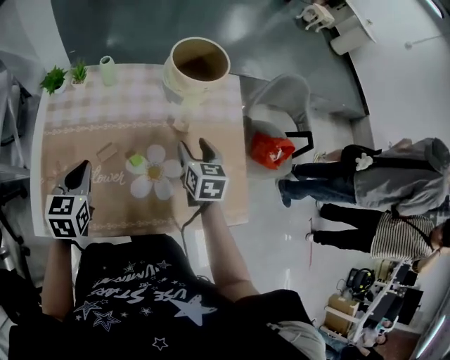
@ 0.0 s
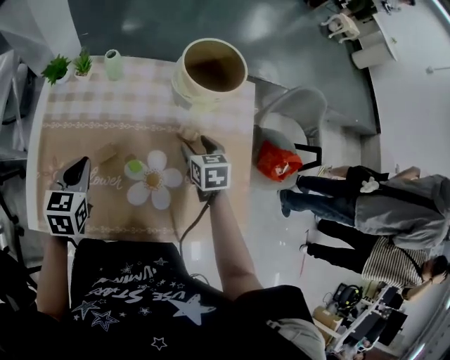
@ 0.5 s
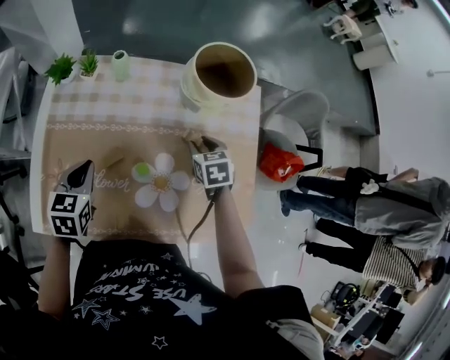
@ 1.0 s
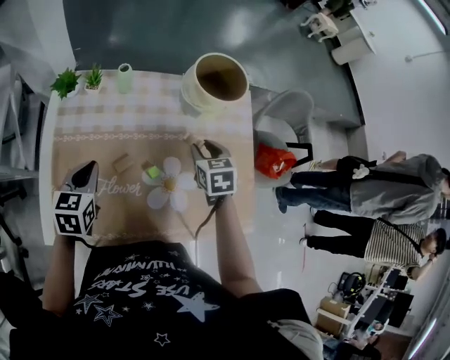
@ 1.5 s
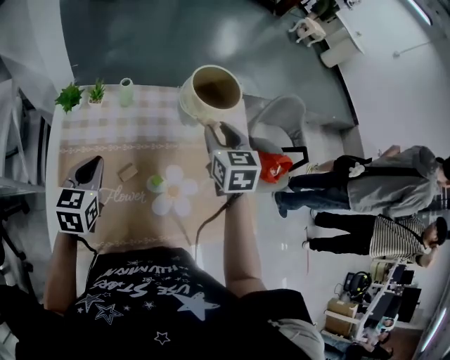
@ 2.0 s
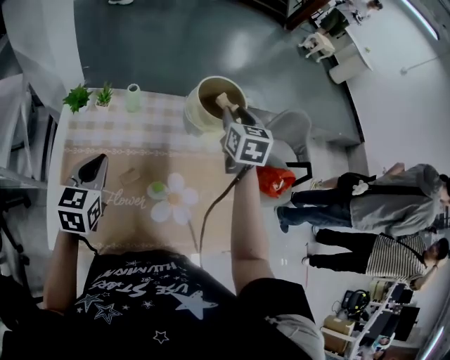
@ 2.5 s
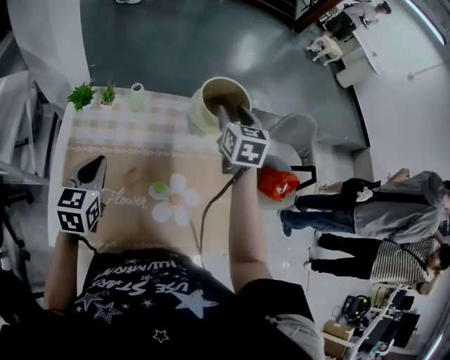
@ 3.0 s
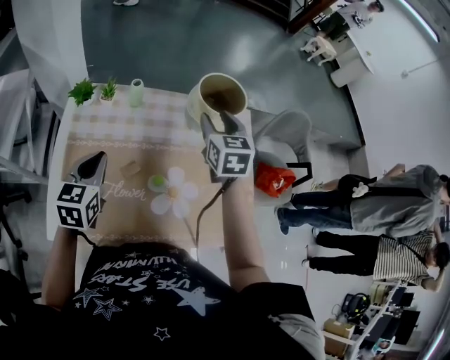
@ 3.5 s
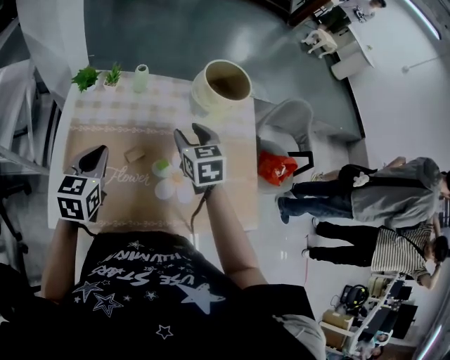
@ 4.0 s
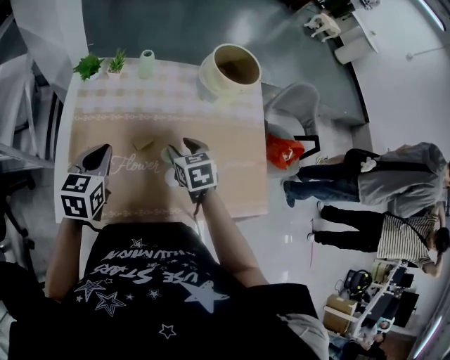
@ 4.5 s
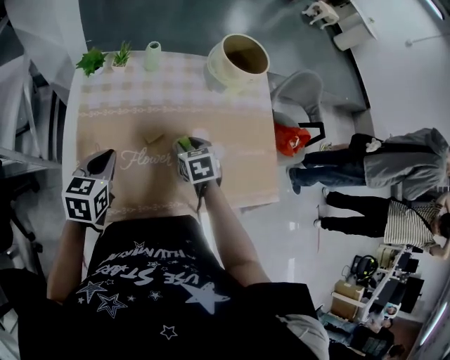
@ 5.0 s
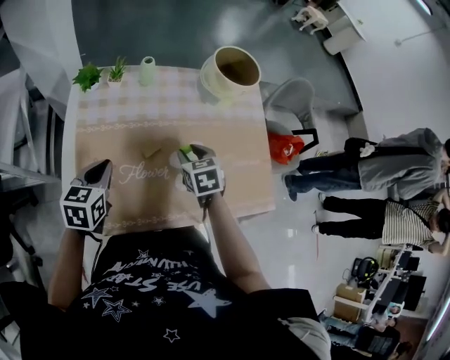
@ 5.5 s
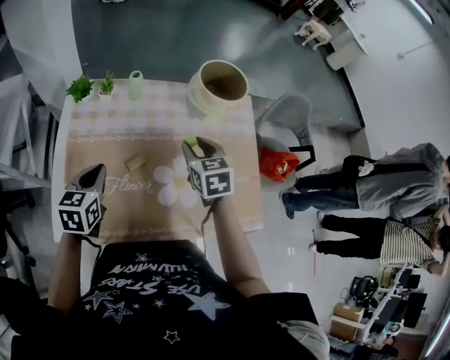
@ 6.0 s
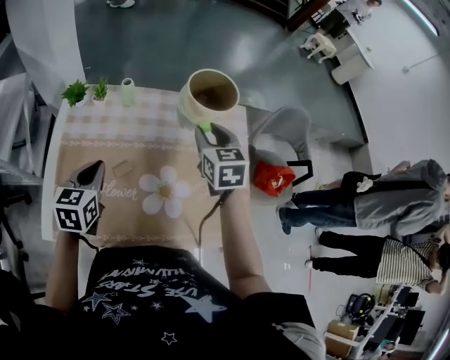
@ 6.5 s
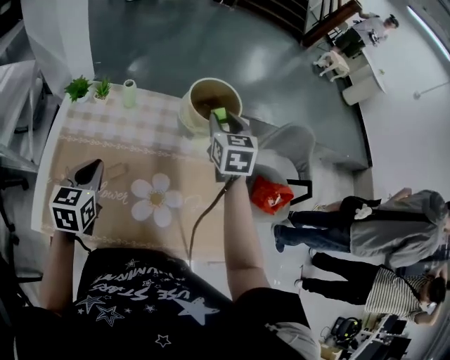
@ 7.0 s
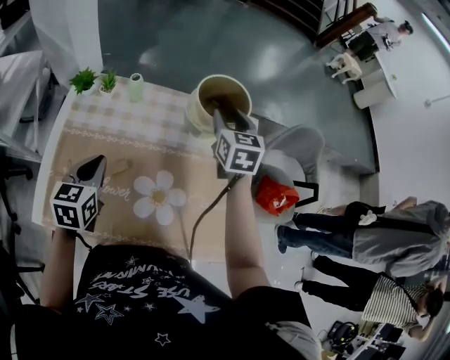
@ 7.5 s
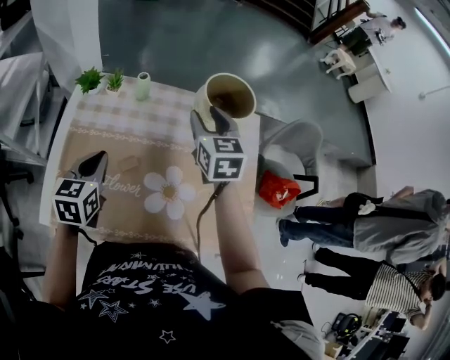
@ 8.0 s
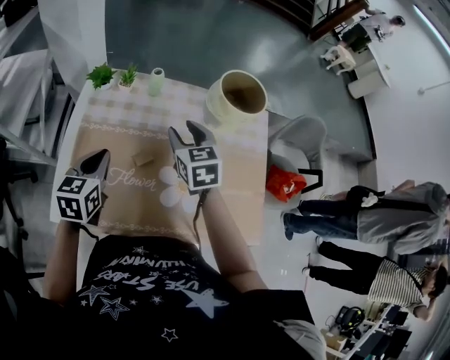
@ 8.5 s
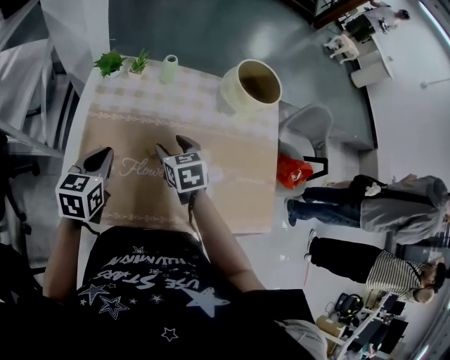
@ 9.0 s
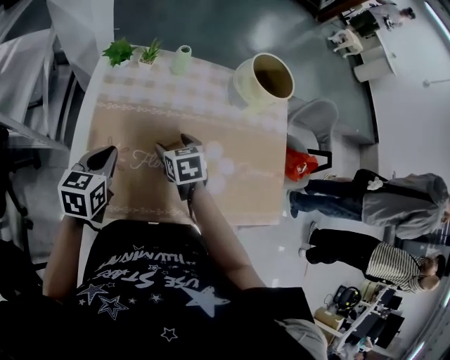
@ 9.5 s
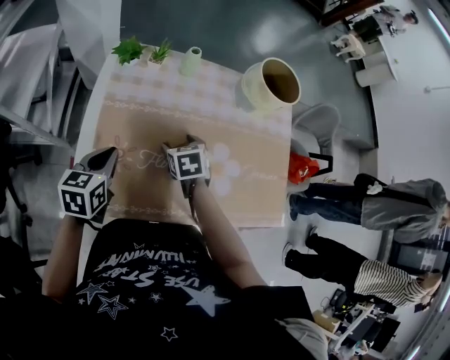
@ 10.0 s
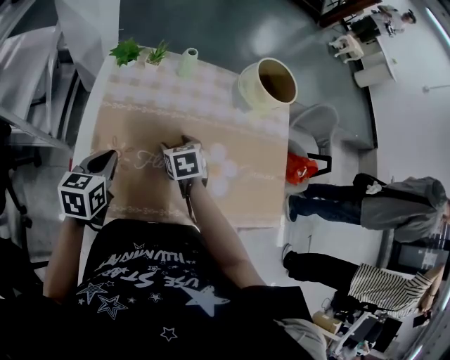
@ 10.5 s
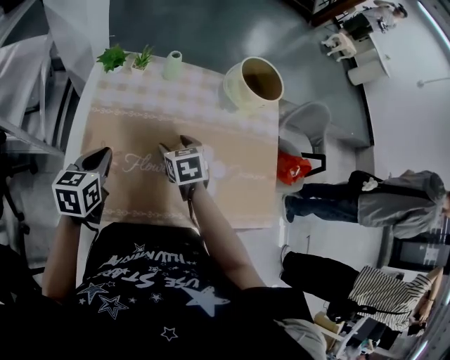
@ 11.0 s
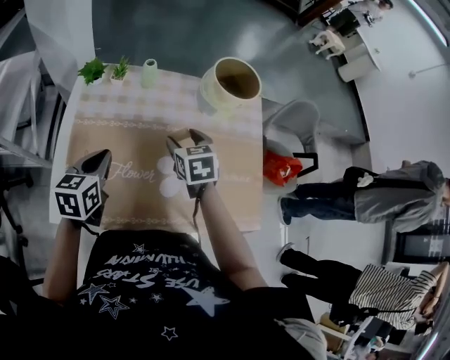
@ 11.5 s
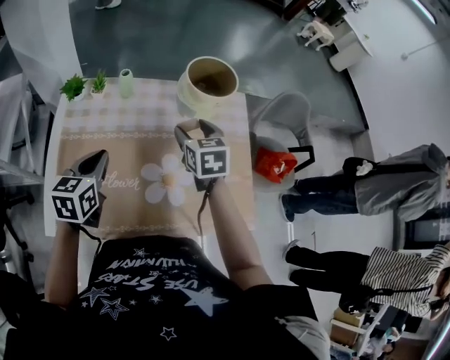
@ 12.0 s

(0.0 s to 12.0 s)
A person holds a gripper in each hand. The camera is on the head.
0.0 s - 2.0 s: The right gripper shifts roughly 15 cm upward and forward, while the left gripper shifts about 5 cm forward.
2.0 s - 4.0 s: The right gripper travels to the left and downward by some 10 cm, and goes forward and returns, about 10 cm each way.
4.0 s - 6.0 s: The right gripper moves some 15 cm downward and comes back.
6.0 s - 8.0 s: The left gripper changes place by about 5 cm. Meanwhile the right gripper travels forward and upward by some 15 cm.
8.0 s - 10.0 s: The right gripper is displaced downward, to the left and backward by some 30 cm, angles its fingers downward, by approximately 30 degrees, and opens up. The left gripper is displaced to the left and downward by about 15 cm.
10.0 s - 12.0 s: The right gripper is displaced to the right and upward by approximately 25 cm, and changes its angle by some 20 degrees. The left gripper shifts about 15 cm to the right and upward.

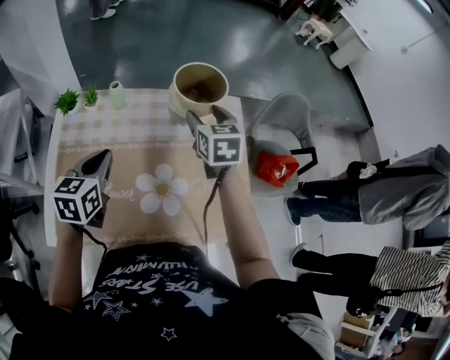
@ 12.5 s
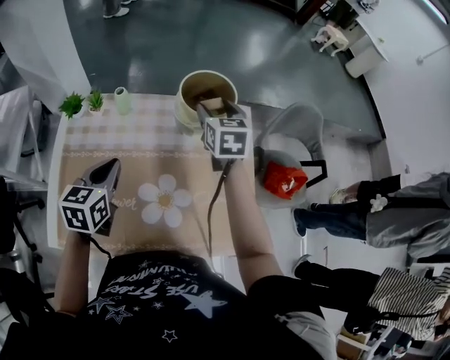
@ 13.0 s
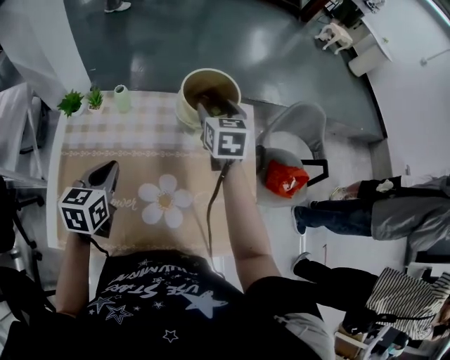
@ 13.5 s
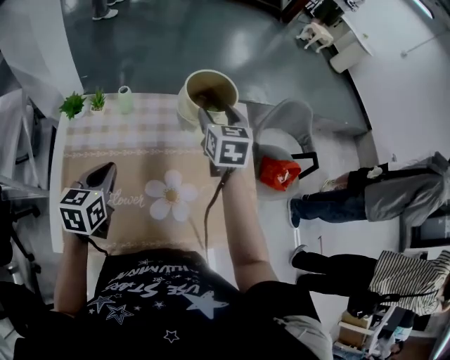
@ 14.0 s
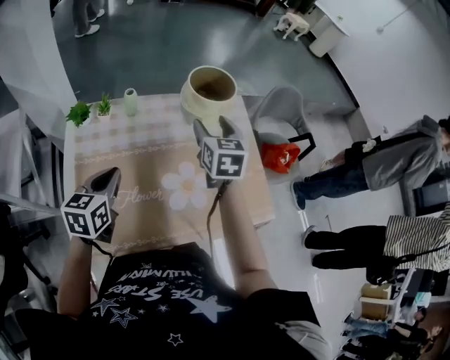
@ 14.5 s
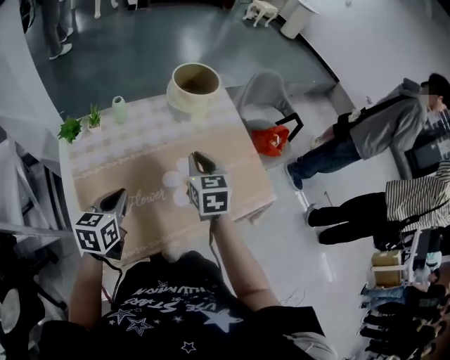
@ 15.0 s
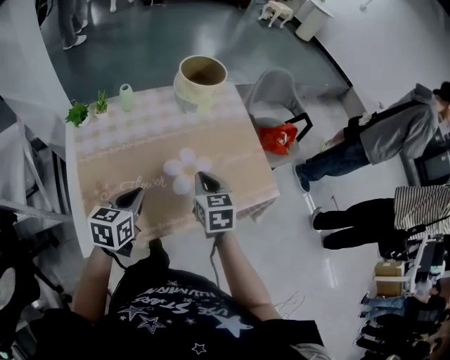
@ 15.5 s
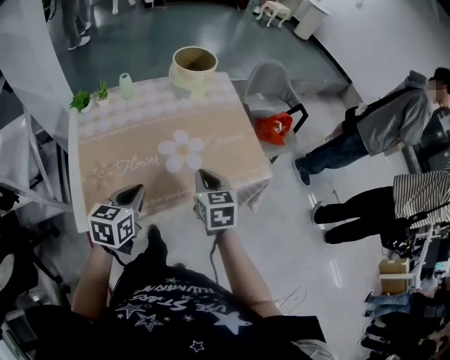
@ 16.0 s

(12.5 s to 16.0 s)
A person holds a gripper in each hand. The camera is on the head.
12.5 s - 14.5 s: The left gripper heads to the left, covering some 5 cm. Meanwhile the right gripper goes about 5 cm backward.
14.5 s - 16.0 s: The right gripper is displaced backward by roughly 25 cm, and closes up; the left gripper moves backward and to the right, roughly 20 cm.

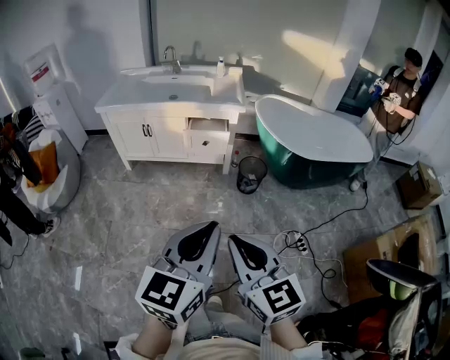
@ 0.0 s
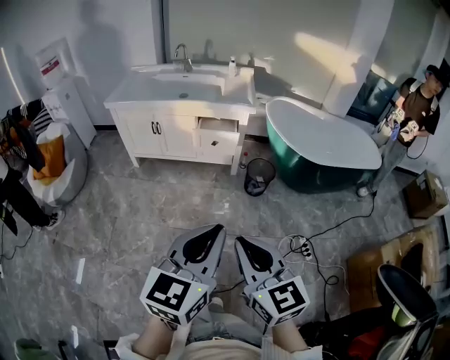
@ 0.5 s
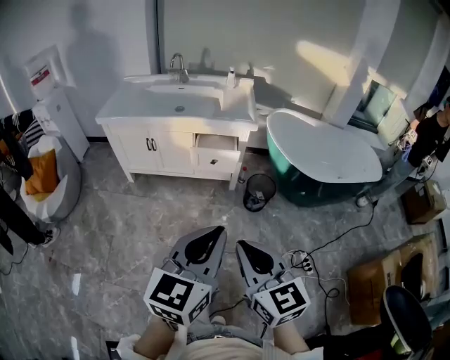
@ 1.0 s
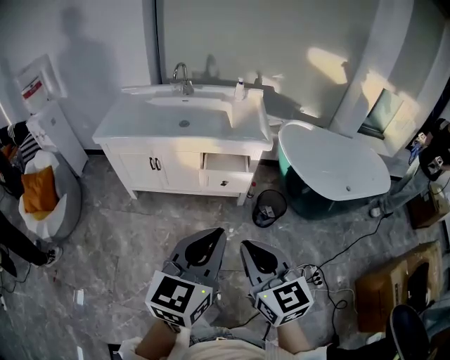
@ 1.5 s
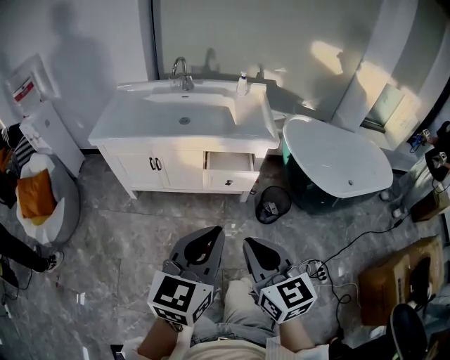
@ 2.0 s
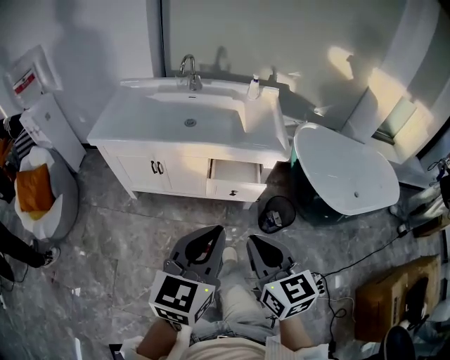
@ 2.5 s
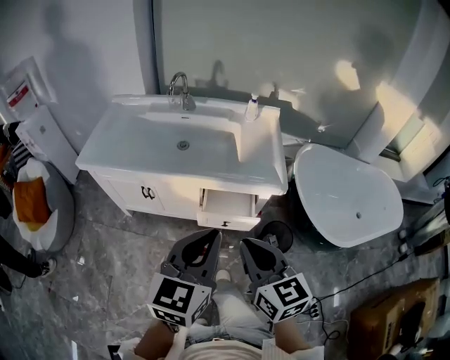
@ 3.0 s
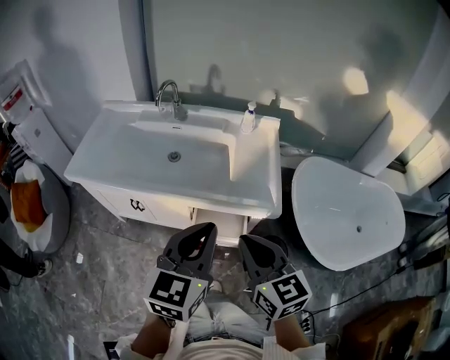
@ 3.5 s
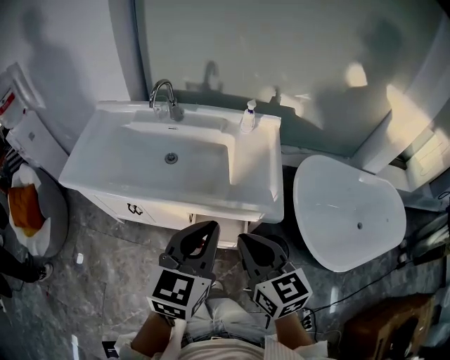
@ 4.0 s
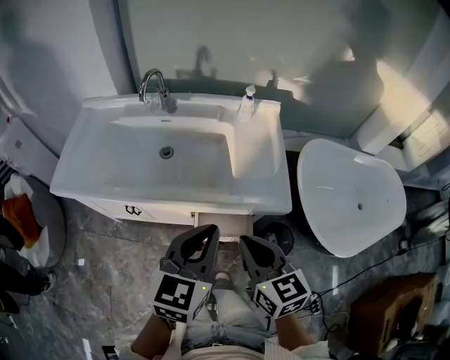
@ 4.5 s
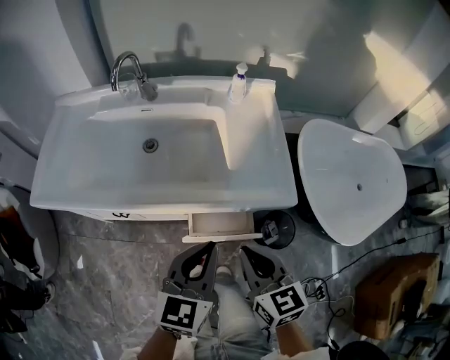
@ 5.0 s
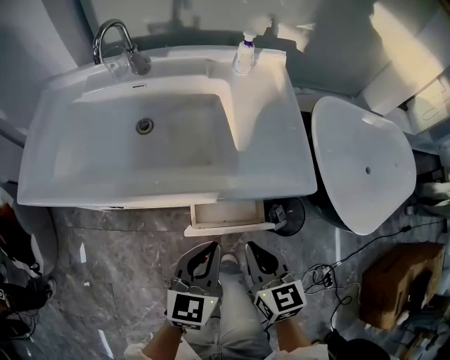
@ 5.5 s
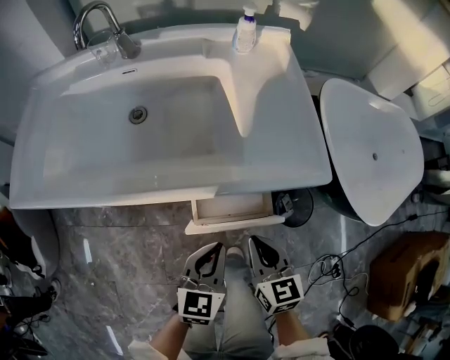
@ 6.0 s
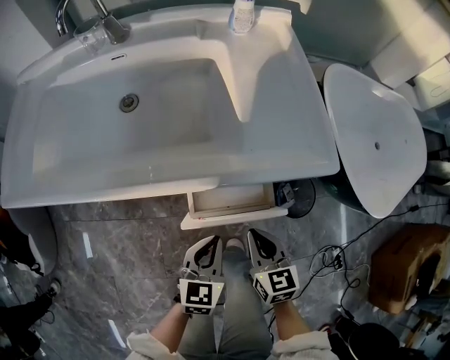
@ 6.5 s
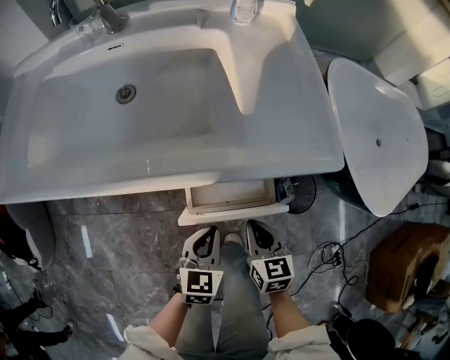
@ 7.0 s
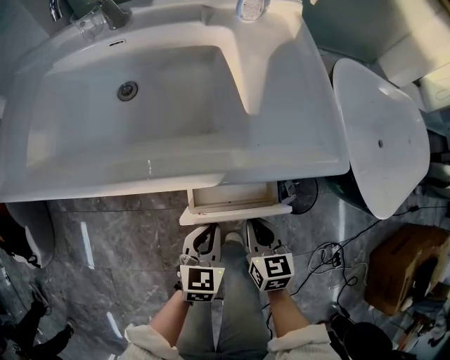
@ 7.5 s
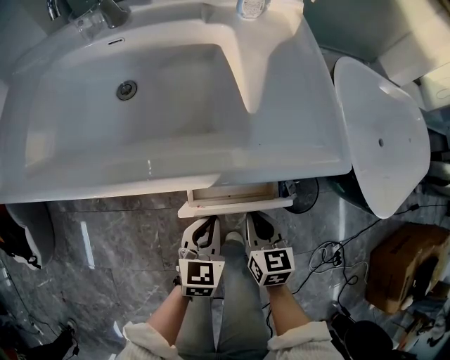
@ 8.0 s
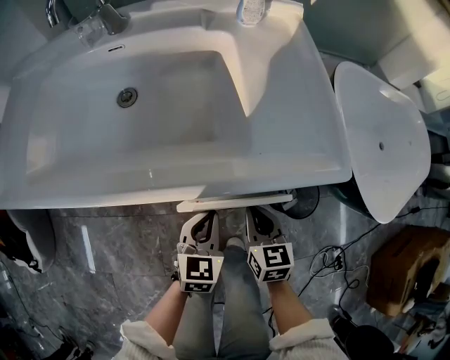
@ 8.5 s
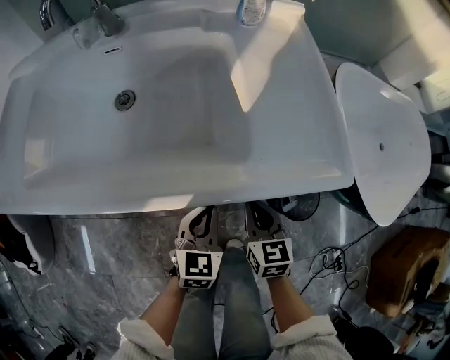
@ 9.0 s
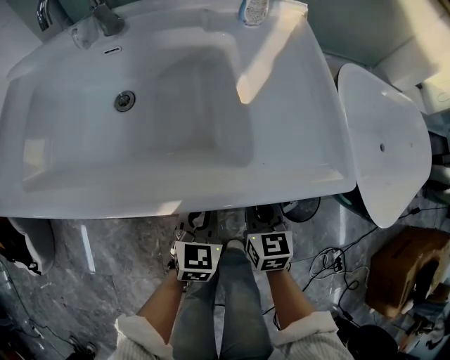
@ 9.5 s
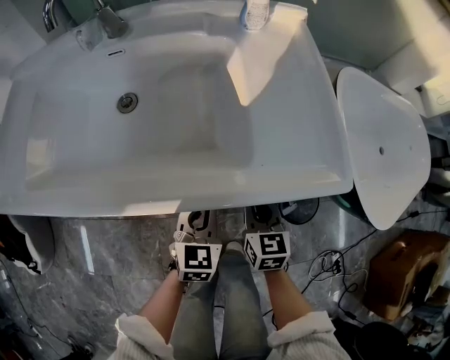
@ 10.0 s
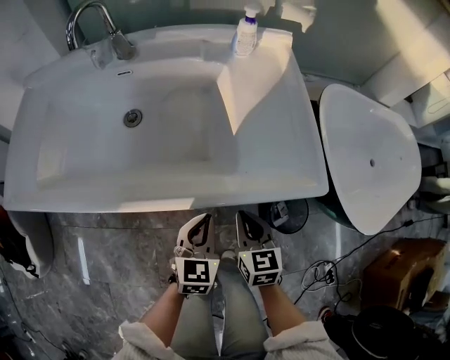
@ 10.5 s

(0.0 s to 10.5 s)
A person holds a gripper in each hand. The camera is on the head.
0.0 s - 2.0 s: The left gripper travels forward and to the left by approximately 30 cm; the right gripper moves forward, some 30 cm.
2.0 s - 4.0 s: The two grippers go roughly 35 cm forward.
4.0 s - 6.5 s: Both grippers travel together downward, roughly 35 cm. The left gripper rotates approximately 20 degrees. Meanwhile the right gripper rotates some 30 degrees.
6.5 s - 8.5 s: The grippers both shift forward by roughly 5 cm.
8.5 s - 10.5 s: The grippers stay close to where they were, moving slightly.

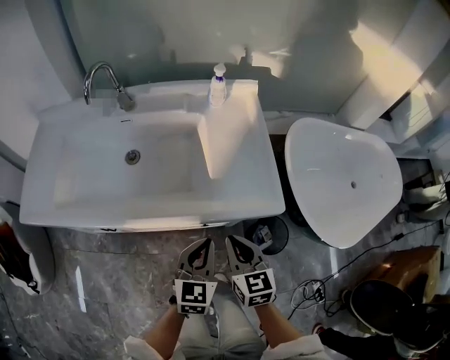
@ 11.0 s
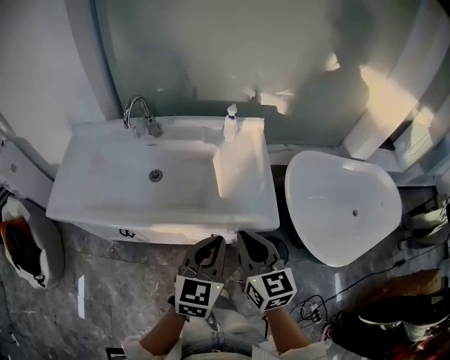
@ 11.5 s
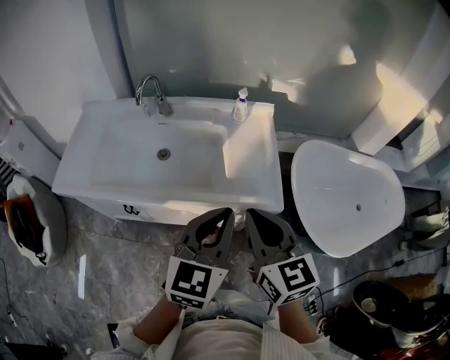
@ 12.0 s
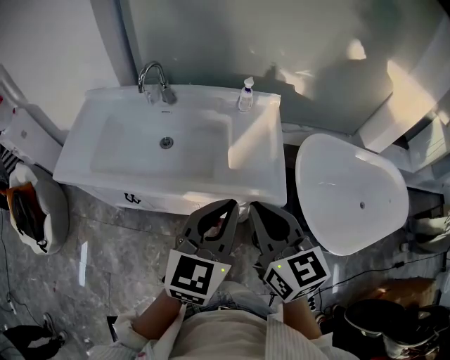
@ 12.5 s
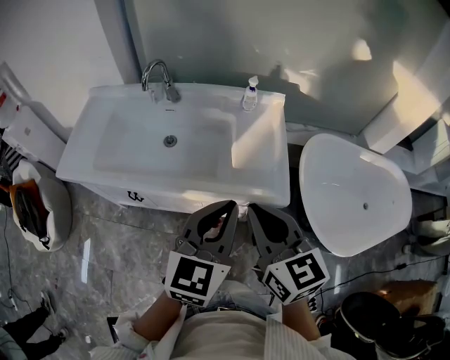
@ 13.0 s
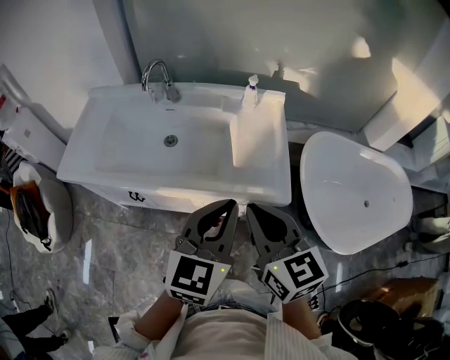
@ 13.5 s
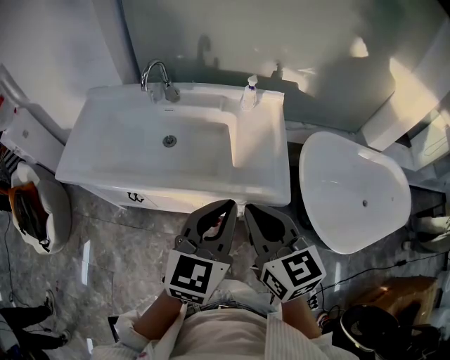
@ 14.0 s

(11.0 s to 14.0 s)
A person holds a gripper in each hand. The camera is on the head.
11.0 s - 12.5 s: The grippers both shift upward by approximately 25 cm.
12.5 s - 14.0 s: The grippers move only a little.
